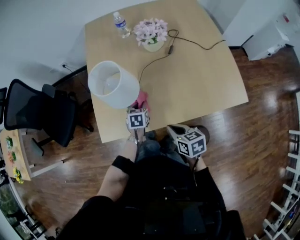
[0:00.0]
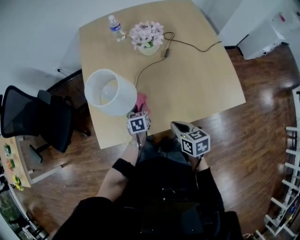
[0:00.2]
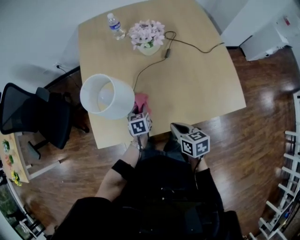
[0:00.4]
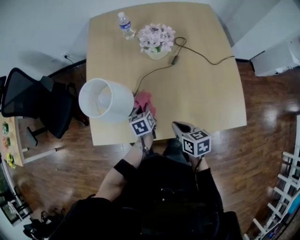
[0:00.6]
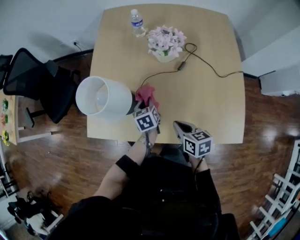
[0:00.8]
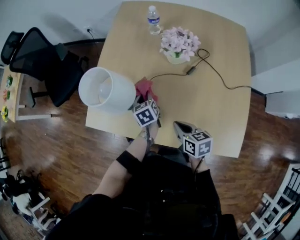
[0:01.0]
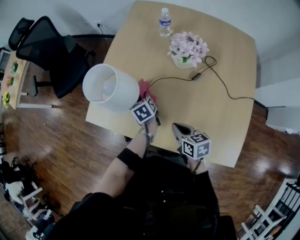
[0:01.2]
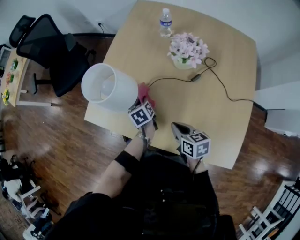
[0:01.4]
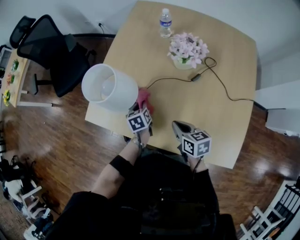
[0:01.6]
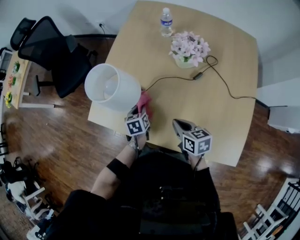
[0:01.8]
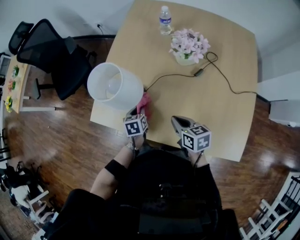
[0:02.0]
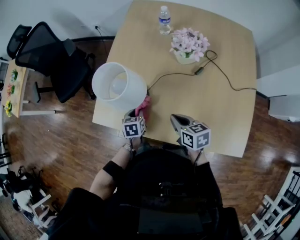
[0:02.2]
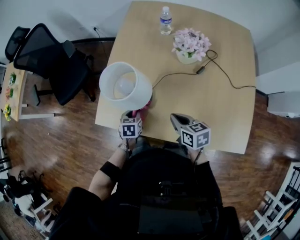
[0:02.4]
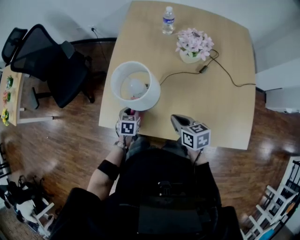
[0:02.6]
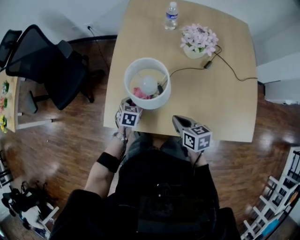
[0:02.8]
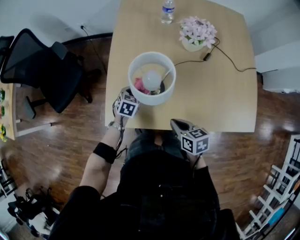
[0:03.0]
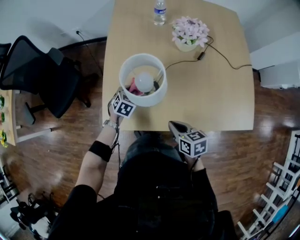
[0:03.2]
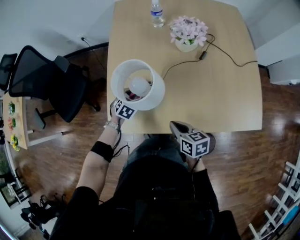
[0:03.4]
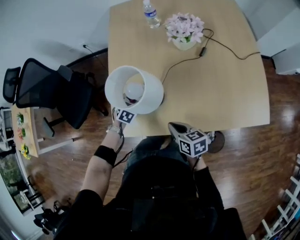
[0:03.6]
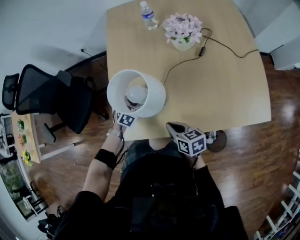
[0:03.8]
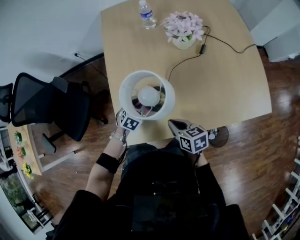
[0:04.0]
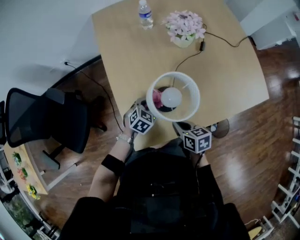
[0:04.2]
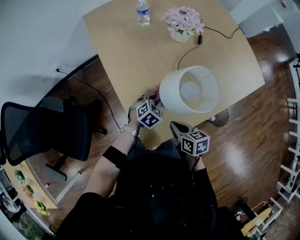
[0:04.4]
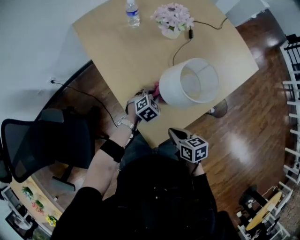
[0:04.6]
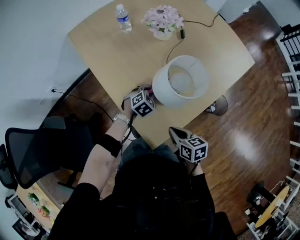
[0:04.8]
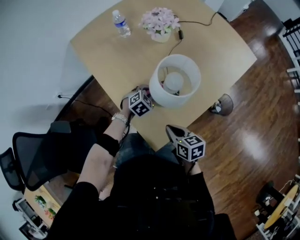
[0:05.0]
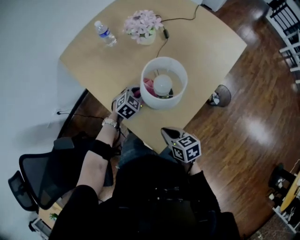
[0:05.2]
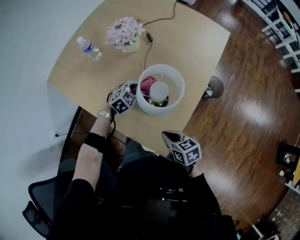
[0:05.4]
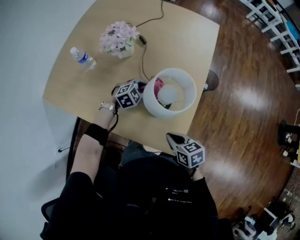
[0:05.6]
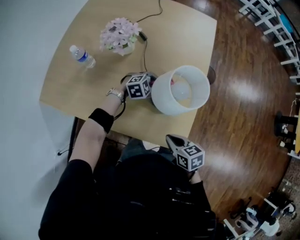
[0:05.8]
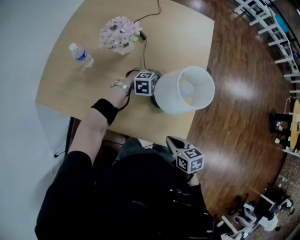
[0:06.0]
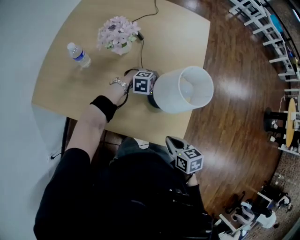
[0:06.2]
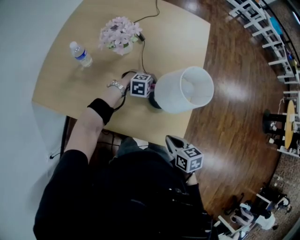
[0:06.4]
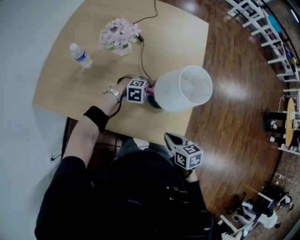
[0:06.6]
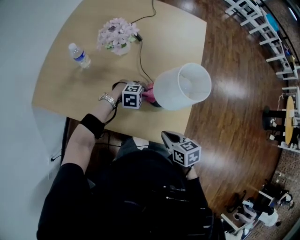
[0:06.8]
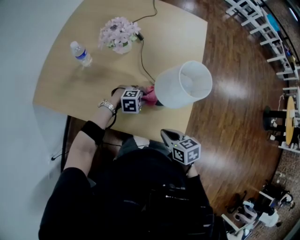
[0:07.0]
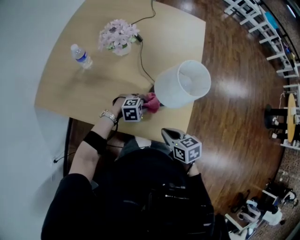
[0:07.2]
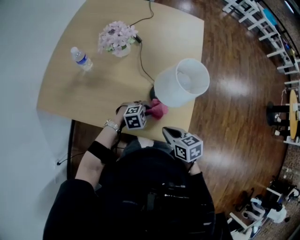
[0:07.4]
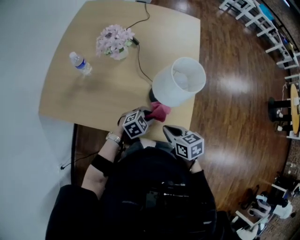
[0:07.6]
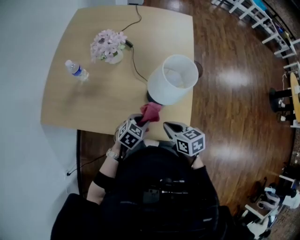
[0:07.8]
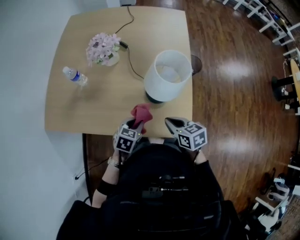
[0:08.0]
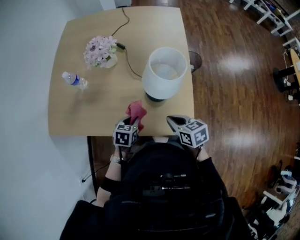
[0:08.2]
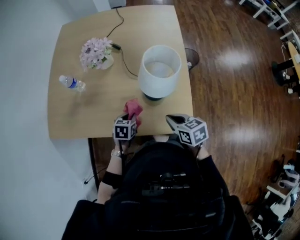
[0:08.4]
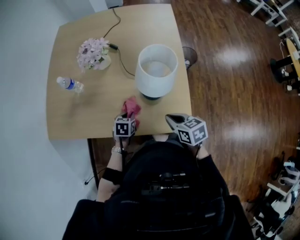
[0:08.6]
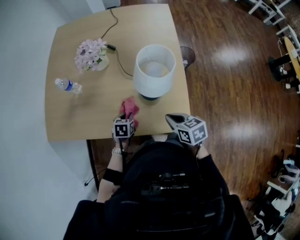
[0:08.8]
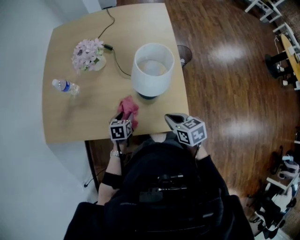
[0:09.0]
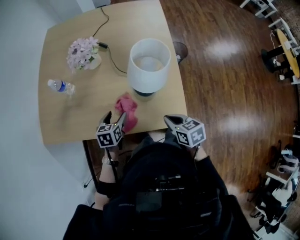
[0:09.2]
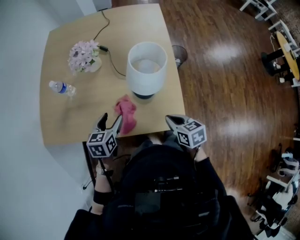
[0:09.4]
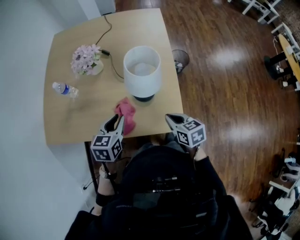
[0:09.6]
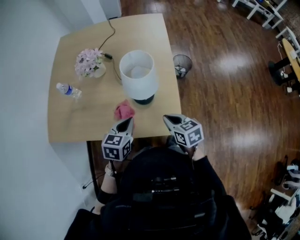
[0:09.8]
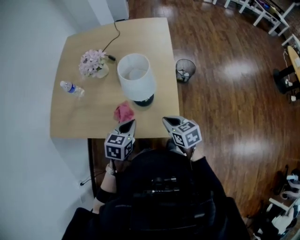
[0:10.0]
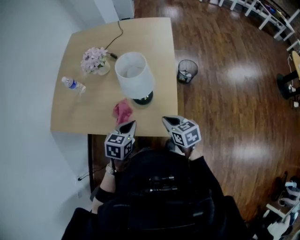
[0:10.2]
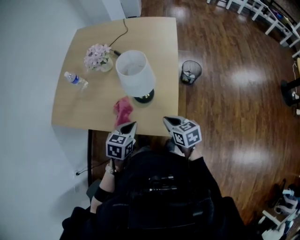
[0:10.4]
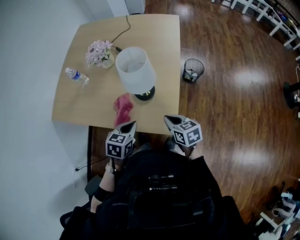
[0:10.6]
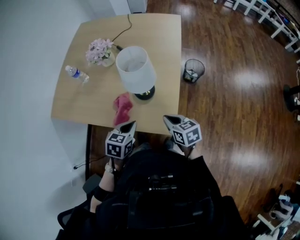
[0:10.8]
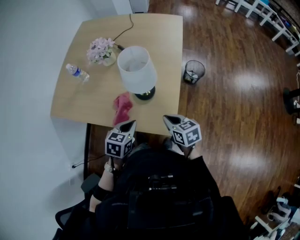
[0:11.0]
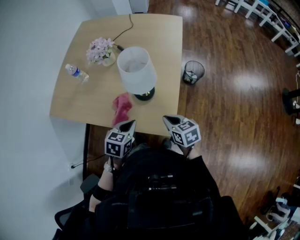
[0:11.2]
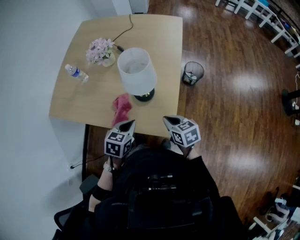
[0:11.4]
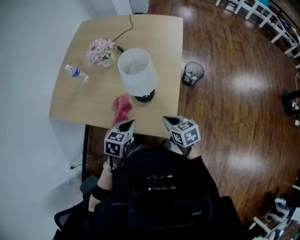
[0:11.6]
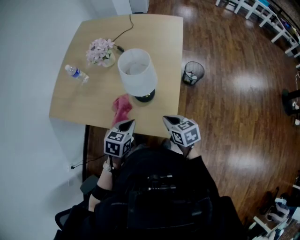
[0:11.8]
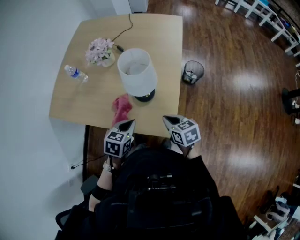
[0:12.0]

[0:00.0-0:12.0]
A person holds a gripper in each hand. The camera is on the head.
0:00.0 to 0:01.6: The left gripper twists about 40 degrees counterclockwise, seen from behind. Meanwhile the right gripper shifts by about 20 cm, and swivels about 30 degrees.
0:01.6 to 0:03.0: The left gripper changes place by roughly 15 cm, and rotates around the line of its fingers by roughly 50 degrees, clockwise from behind; the right gripper ends up some 20 cm from where it was.
0:03.0 to 0:04.4: The right gripper ends up approximately 20 cm from where it was, and swivels about 30 degrees. Meanwhile the left gripper rolls clockwise, seen from behind, by about 40 degrees.
0:04.4 to 0:06.0: The right gripper ends up about 10 cm from where it was, and swivels about 50 degrees. Meanwhile the left gripper moves approximately 15 cm, and rolls clockwise, seen from behind, by roughly 70 degrees.
0:06.0 to 0:07.6: The left gripper changes place by roughly 20 cm, and turns by about 30 degrees.
0:07.6 to 0:09.0: The left gripper goes approximately 10 cm to the left, rolls counterclockwise, seen from behind, by about 40 degrees, and opens up.
0:09.0 to 0:10.4: The left gripper heads upward, to the right and backward, covering roughly 20 cm, and closes. Meanwhile the right gripper heads to the right, covering some 10 cm.
0:10.4 to 0:12.0: The grippers make only small movements.

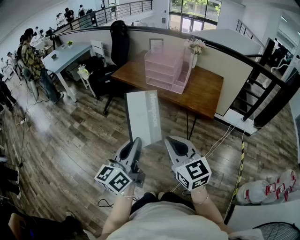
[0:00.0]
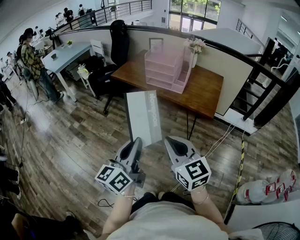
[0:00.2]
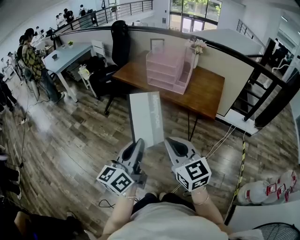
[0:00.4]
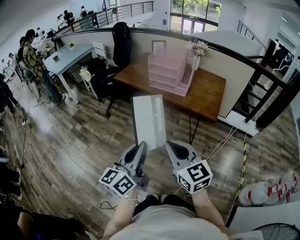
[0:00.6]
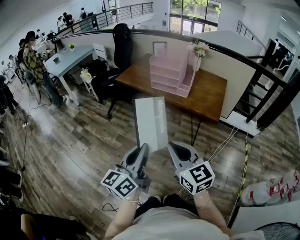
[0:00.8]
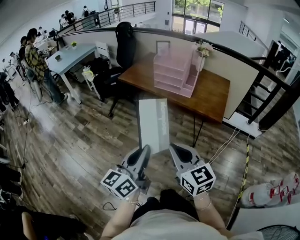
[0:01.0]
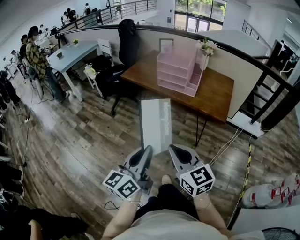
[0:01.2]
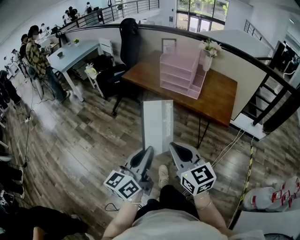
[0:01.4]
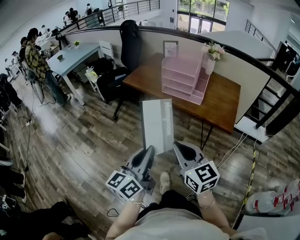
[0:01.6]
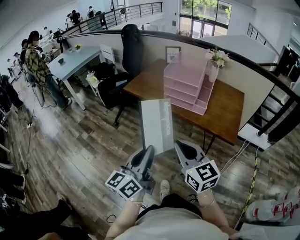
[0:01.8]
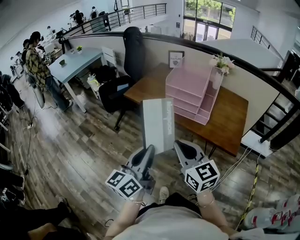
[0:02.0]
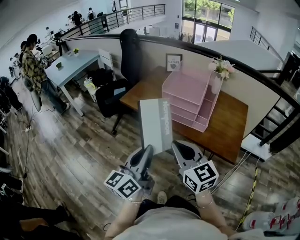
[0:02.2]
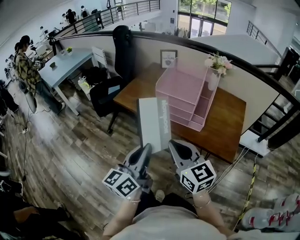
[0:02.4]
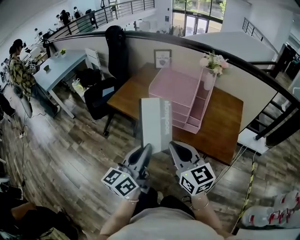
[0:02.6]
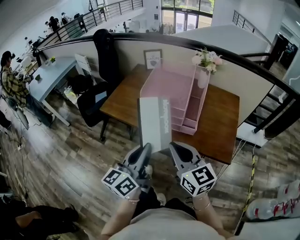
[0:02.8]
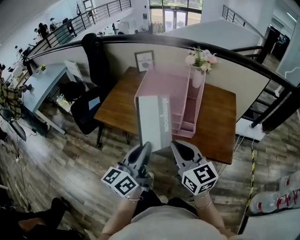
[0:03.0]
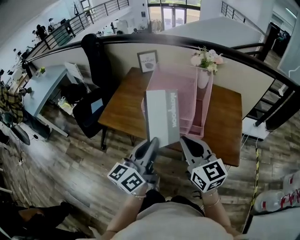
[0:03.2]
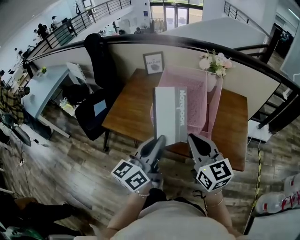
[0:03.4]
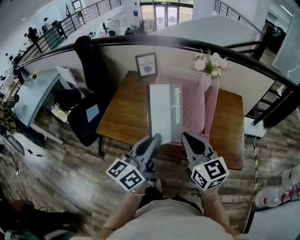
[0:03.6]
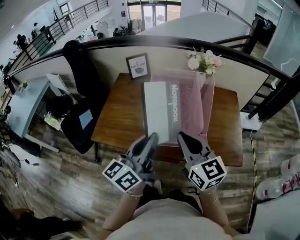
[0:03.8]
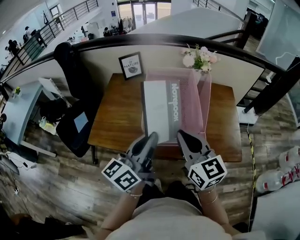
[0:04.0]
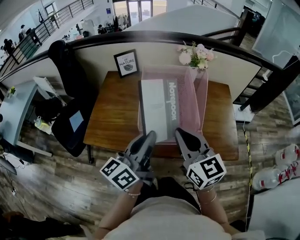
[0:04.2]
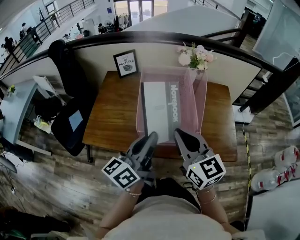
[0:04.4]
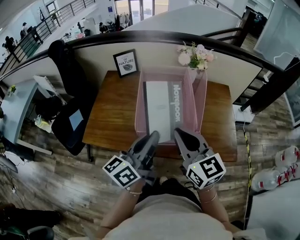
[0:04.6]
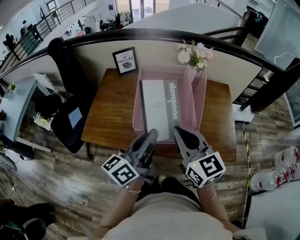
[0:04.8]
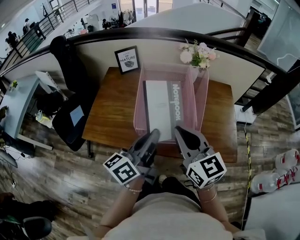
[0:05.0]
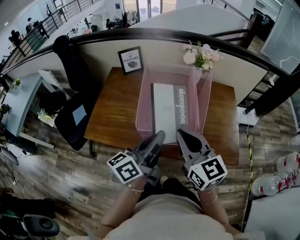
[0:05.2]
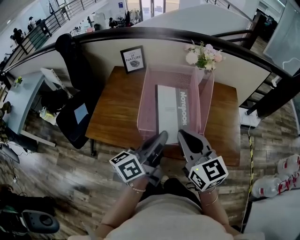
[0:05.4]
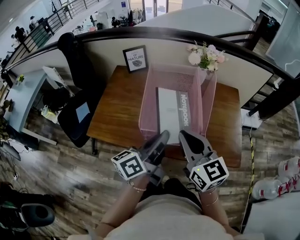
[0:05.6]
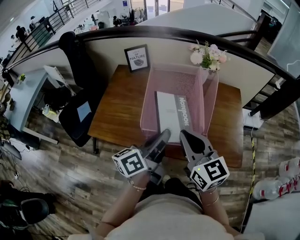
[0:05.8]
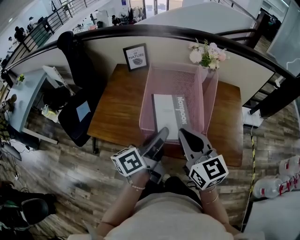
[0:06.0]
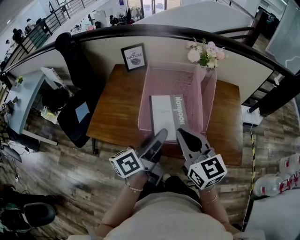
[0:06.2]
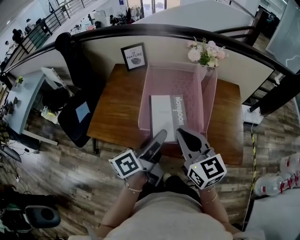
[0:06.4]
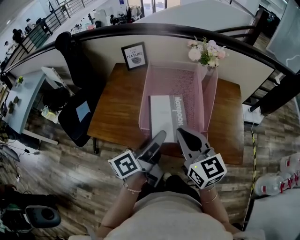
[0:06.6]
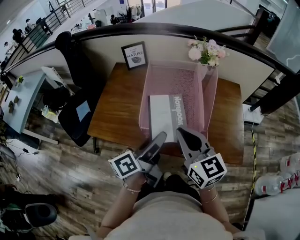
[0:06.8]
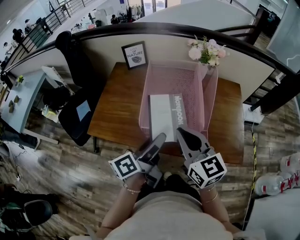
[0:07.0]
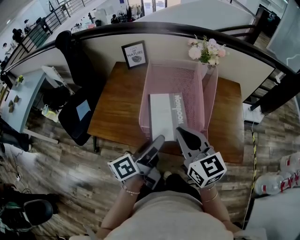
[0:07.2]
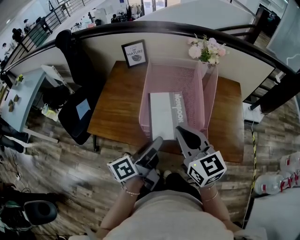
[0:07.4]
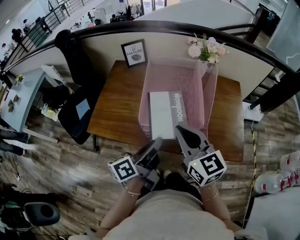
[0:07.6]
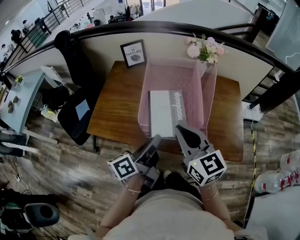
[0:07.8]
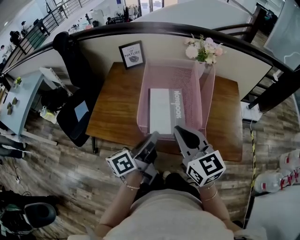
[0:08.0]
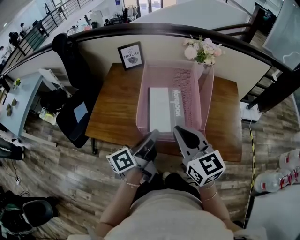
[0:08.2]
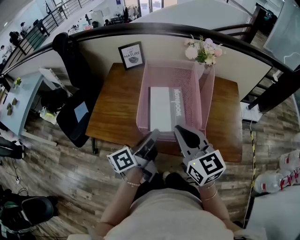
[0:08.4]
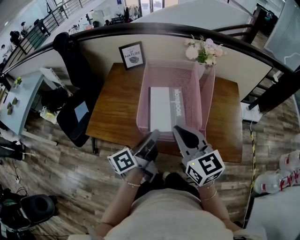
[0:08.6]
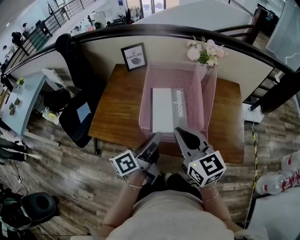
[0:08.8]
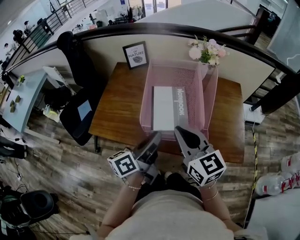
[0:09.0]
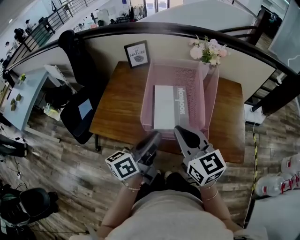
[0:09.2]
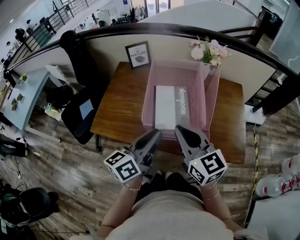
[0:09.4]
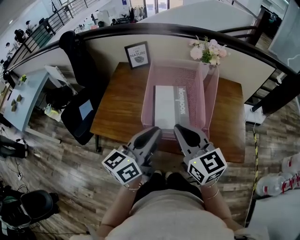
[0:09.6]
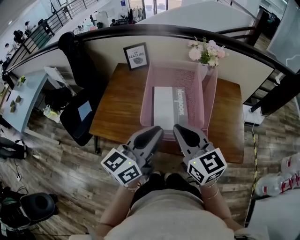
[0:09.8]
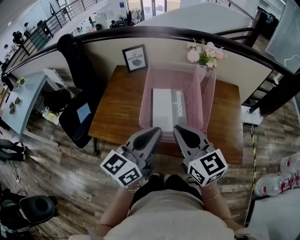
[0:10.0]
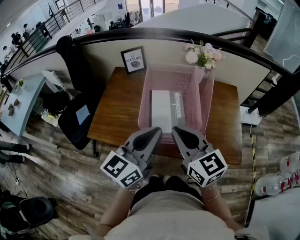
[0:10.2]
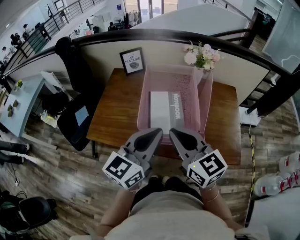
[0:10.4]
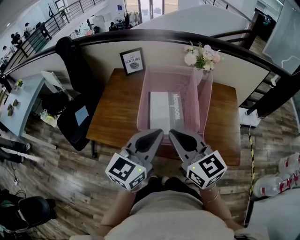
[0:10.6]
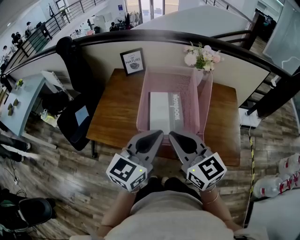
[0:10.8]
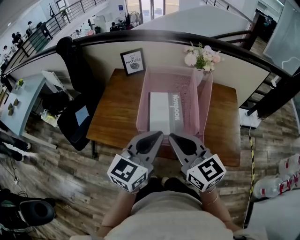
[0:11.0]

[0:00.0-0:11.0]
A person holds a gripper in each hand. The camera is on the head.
0:00.0 to 0:01.6: The right gripper shifts about 10 cm forward and to the left, while the left gripper goes approximately 10 cm forward.
0:01.6 to 0:03.2: The grippers both shift forward by some 35 cm.
0:03.2 to 0:04.8: Both grippers travel together forward, roughly 10 cm. The left gripper swivels some 20 degrees.
0:04.8 to 0:06.2: The left gripper opens.
0:06.2 to 0:07.8: The left gripper shifts by about 5 cm, and closes.
0:07.8 to 0:09.4: The left gripper changes its angle by roughly 20 degrees.
0:09.4 to 0:11.0: The left gripper shifts by approximately 5 cm, and turns by about 40 degrees.

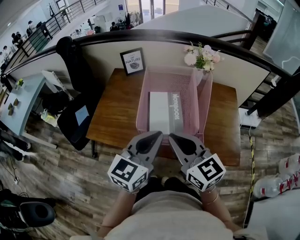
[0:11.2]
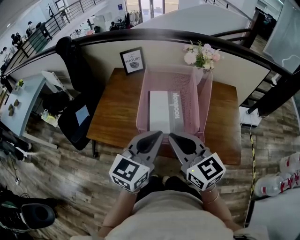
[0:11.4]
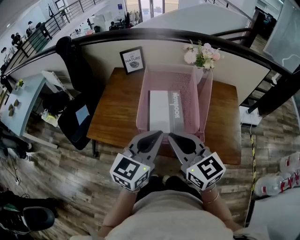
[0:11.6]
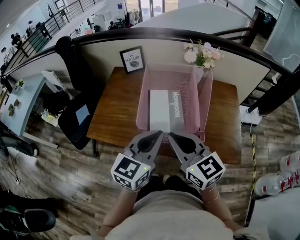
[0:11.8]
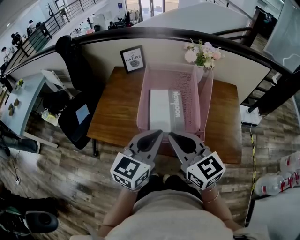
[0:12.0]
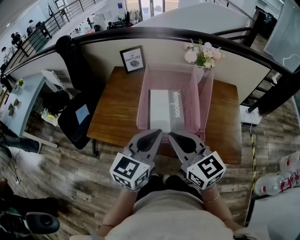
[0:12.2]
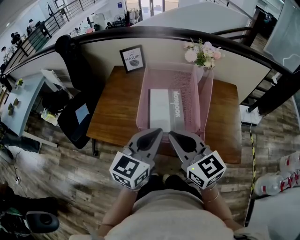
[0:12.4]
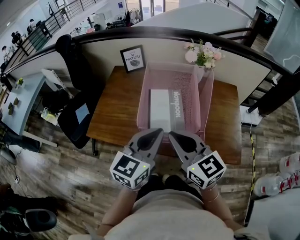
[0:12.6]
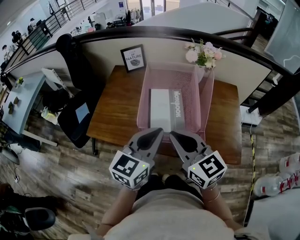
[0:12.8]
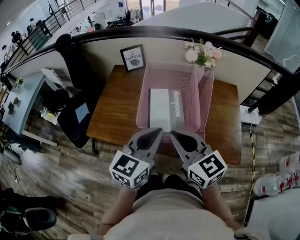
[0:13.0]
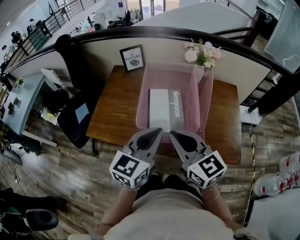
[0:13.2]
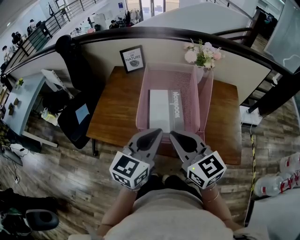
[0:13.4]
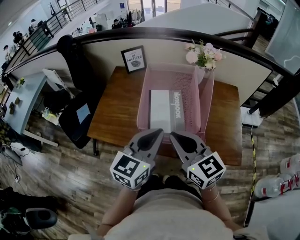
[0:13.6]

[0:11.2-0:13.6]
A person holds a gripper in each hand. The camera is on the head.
0:11.2 to 0:12.4: The grippers make only small movements.
0:12.4 to 0:13.6: Both grippers stay about where they are.
